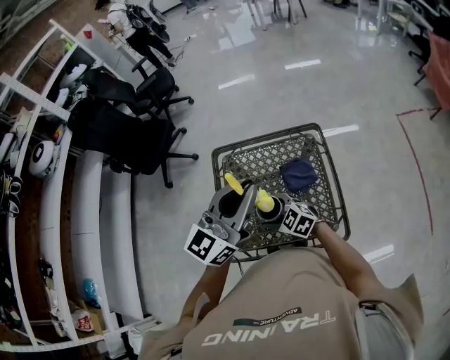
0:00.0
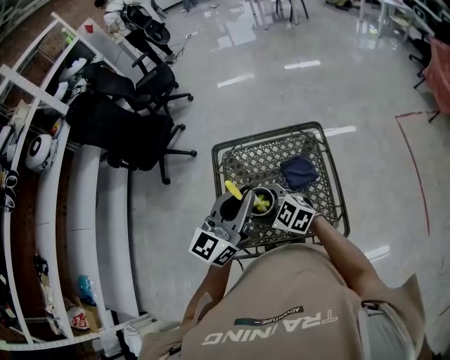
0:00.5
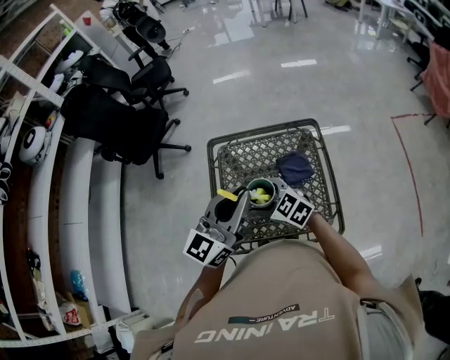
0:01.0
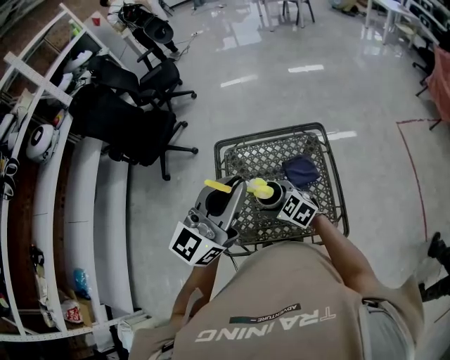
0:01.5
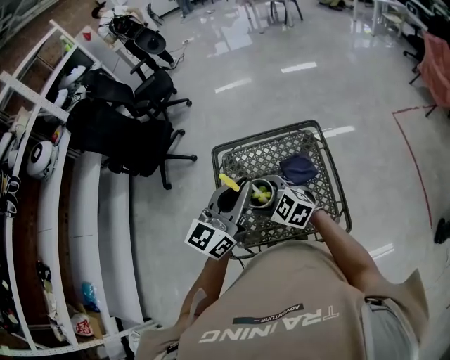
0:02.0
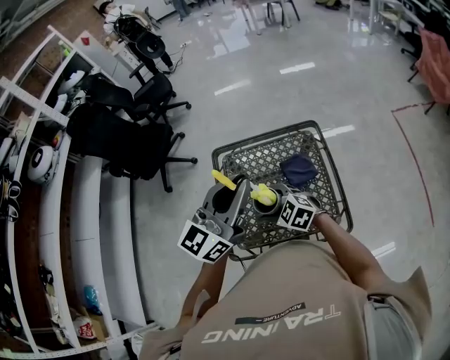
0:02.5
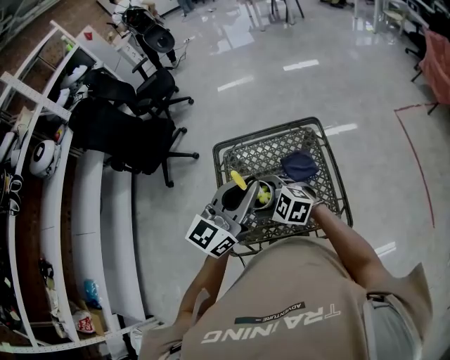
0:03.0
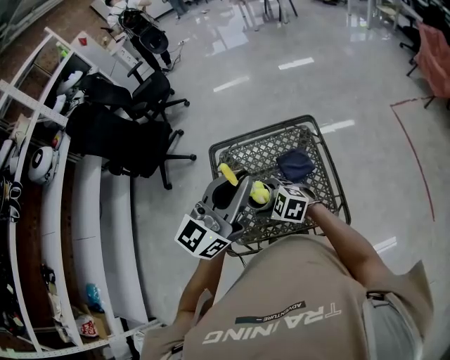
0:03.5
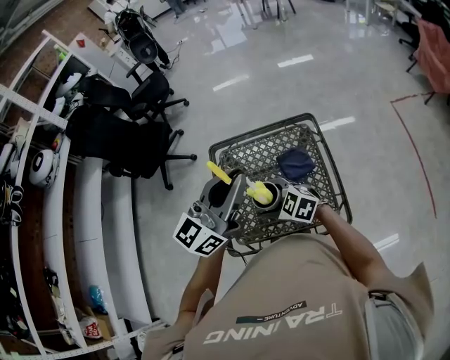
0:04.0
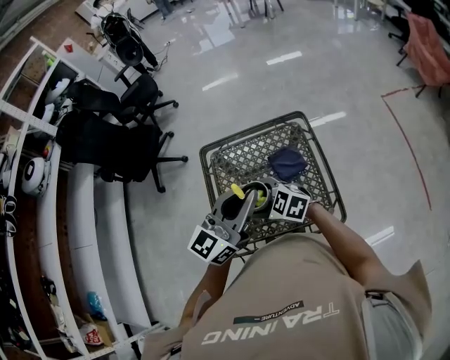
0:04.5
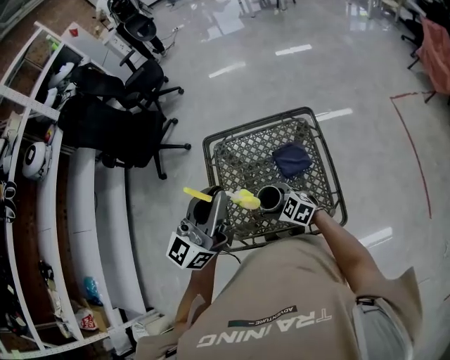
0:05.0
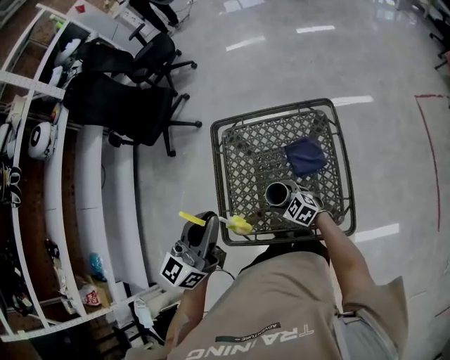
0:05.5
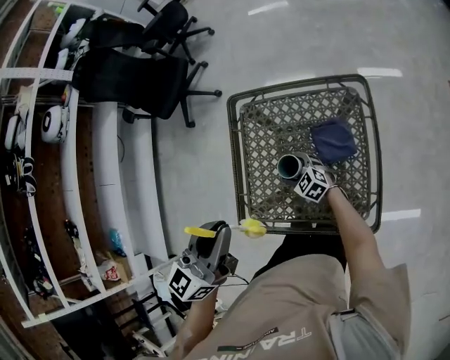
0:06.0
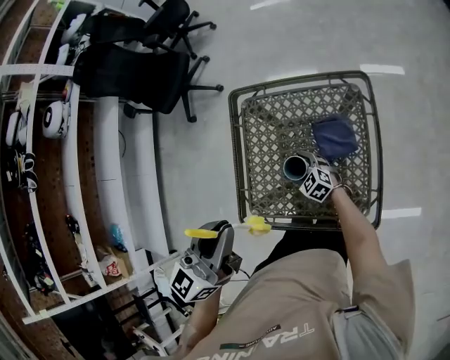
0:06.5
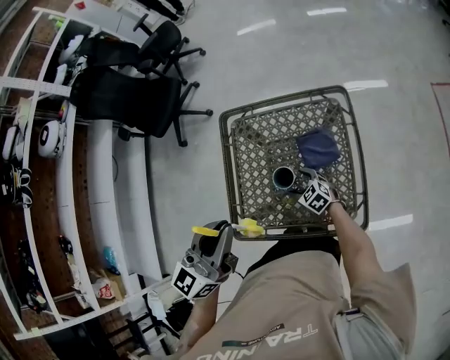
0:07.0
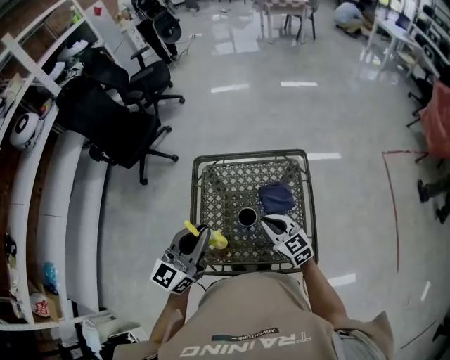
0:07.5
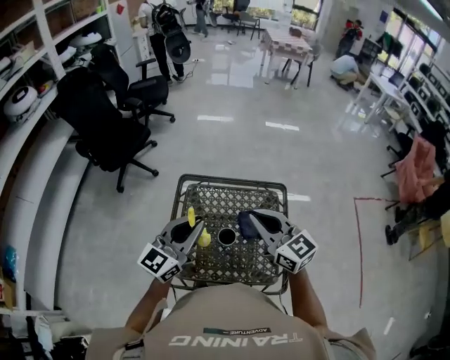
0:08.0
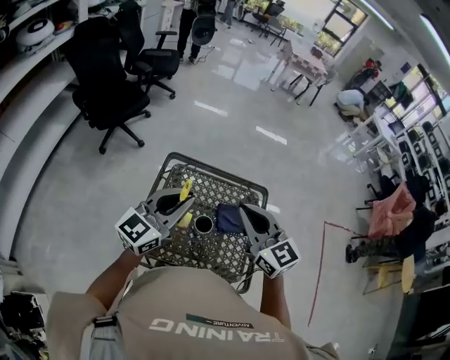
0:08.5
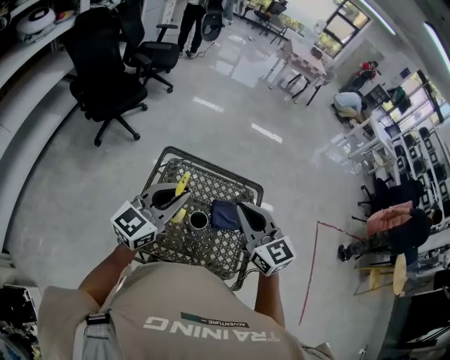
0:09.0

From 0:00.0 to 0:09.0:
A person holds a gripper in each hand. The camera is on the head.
From 0:00.0 to 0:02.0: The left gripper moves up and down over some 10 cm, changing direction 2 times. The right gripper moves up and down over approximately 10 cm, changing direction 2 times.
From 0:02.0 to 0:04.5: The left gripper moves up and down over about 5 cm, changing direction 3 times.
From 0:04.5 to 0:07.0: The left gripper goes roughly 10 cm to the left, and changes its angle by approximately 20 degrees. The right gripper moves downward, approximately 25 cm.
From 0:07.0 to 0:09.0: The right gripper travels upward by some 40 cm, points its fingers roughly 40 degrees further upward, and closes up. Meanwhile the left gripper shifts approximately 5 cm forward.

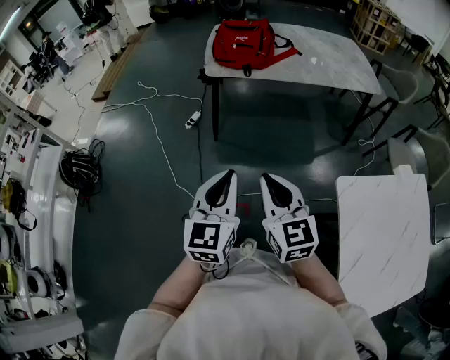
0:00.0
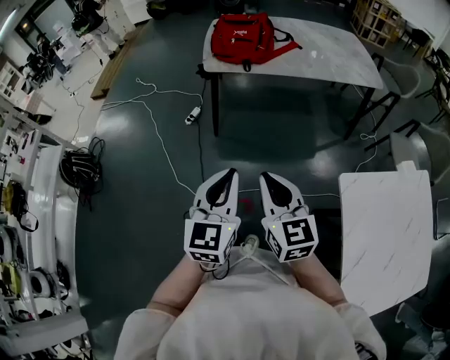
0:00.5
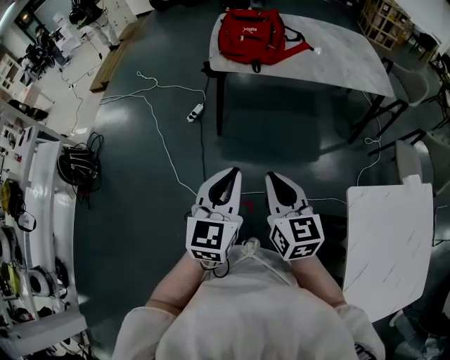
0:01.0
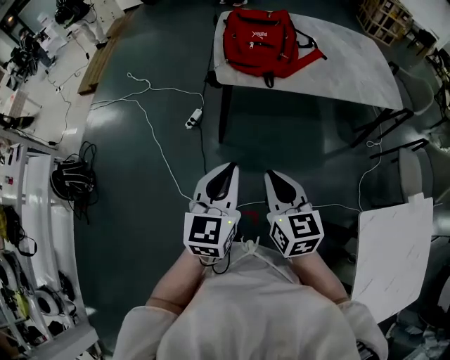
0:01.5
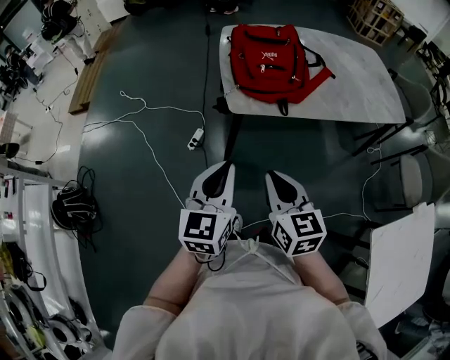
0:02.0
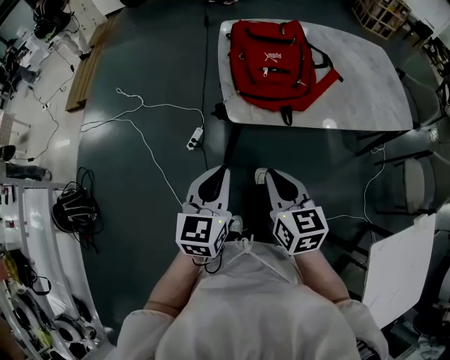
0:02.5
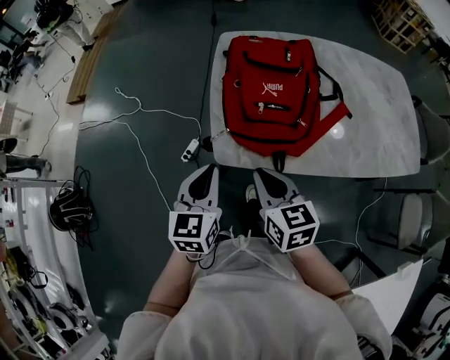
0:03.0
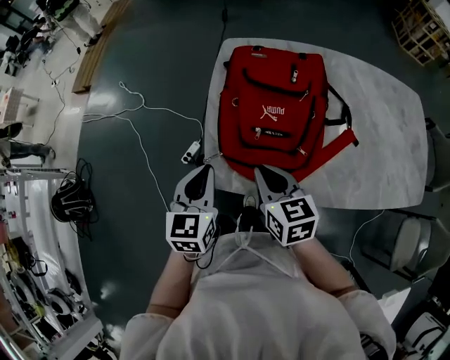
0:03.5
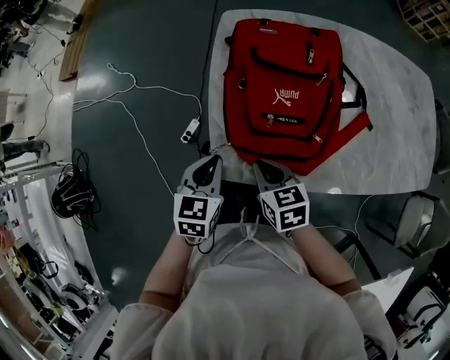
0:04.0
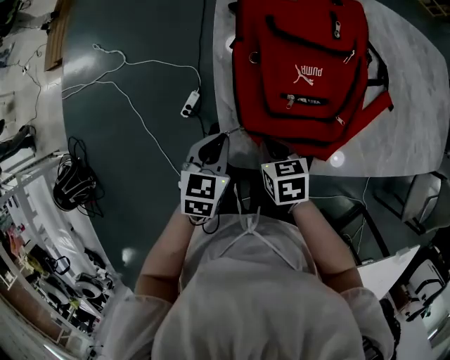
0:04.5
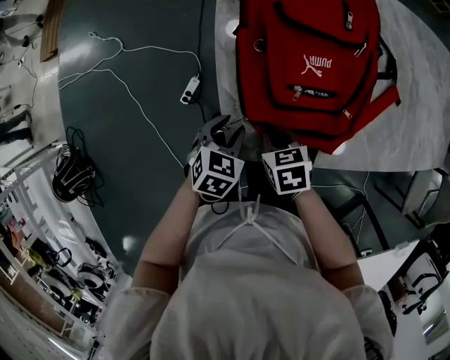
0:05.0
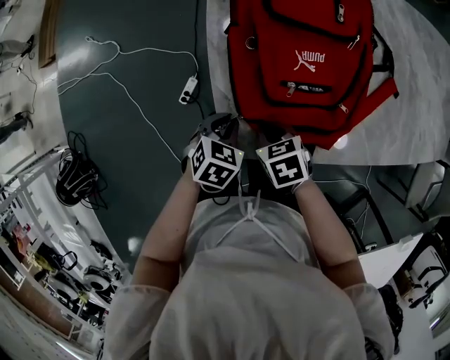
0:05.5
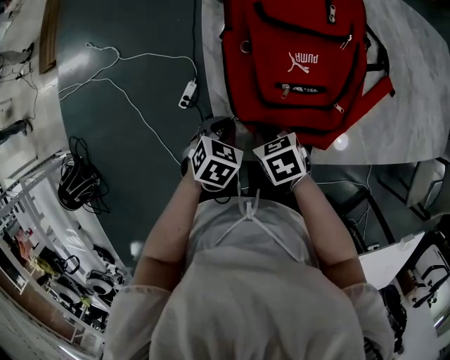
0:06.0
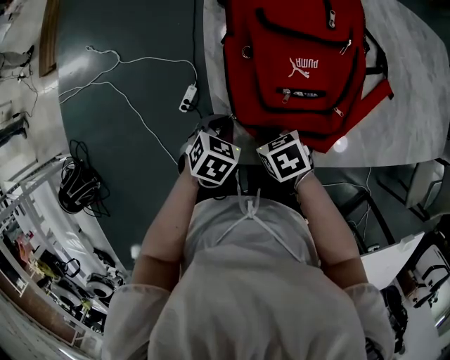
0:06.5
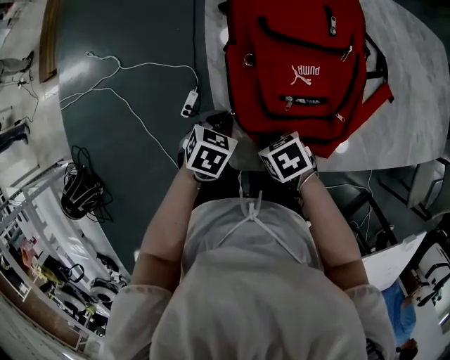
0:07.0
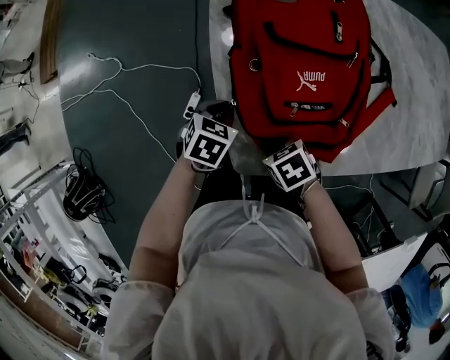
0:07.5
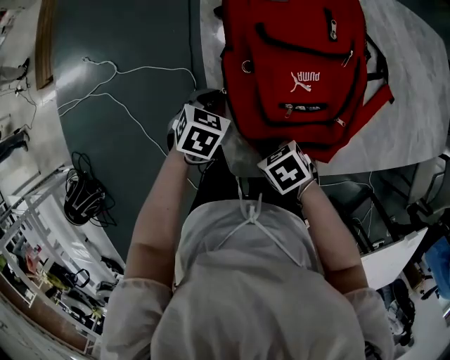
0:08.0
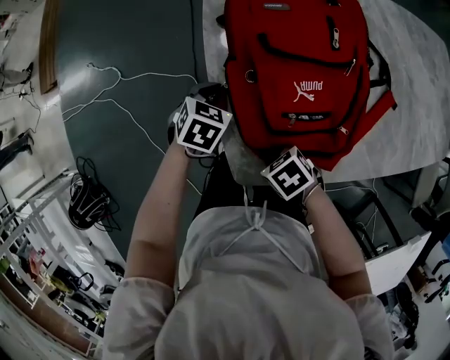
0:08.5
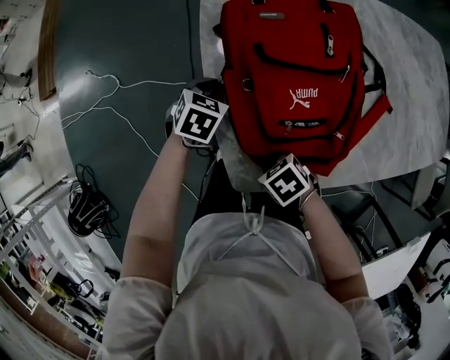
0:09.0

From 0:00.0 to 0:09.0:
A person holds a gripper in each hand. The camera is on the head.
From 0:00.0 to 0:02.0: Both grippers move forward and to the left, roughly 40 cm.
From 0:02.0 to 0:04.5: The grippers both shift forward and downward by about 40 cm. The right gripper angles its fingers downward, by about 40 degrees; the left gripper angles its fingers downward, by about 30 degrees.
From 0:04.5 to 0:07.0: The right gripper swivels roughly 20 degrees, while the left gripper shifts about 5 cm downward, changes its angle by about 20 degrees, and opens, then closes again.
From 0:07.0 to 0:09.0: The left gripper moves approximately 15 cm.

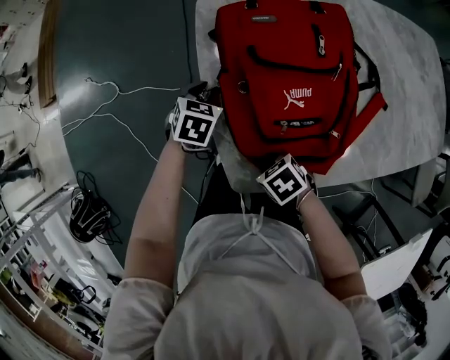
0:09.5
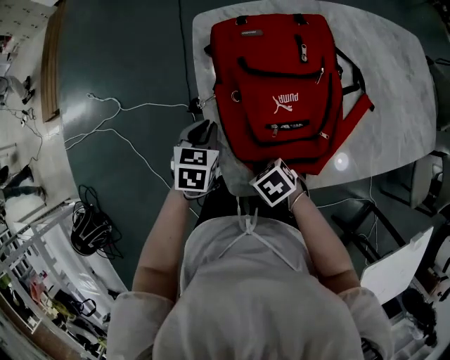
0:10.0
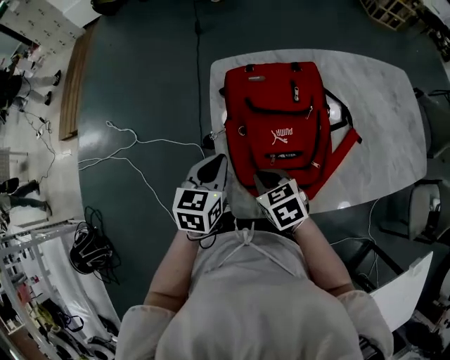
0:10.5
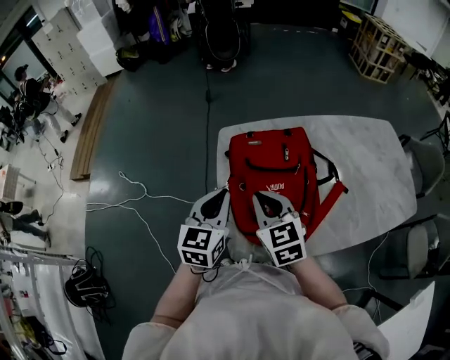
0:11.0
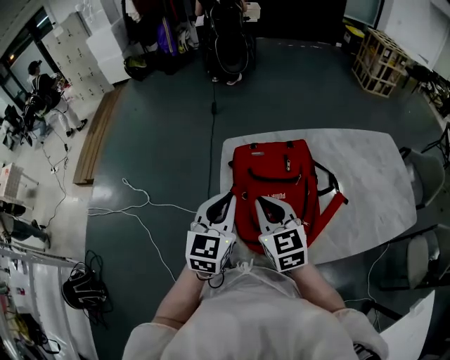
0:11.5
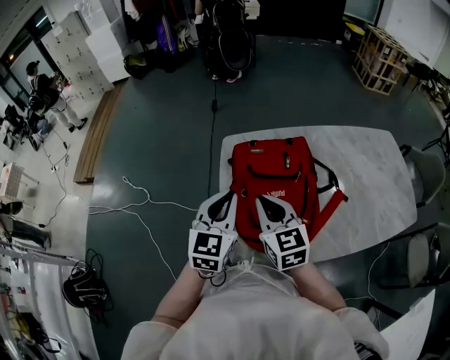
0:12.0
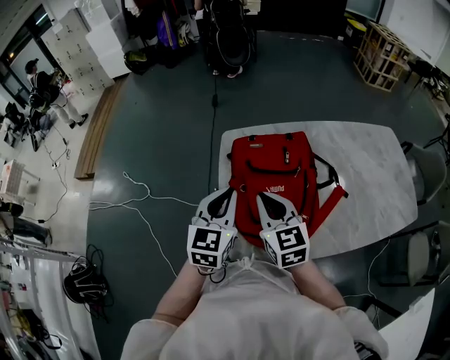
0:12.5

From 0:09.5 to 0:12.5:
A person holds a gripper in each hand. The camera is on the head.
From 0:09.5 to 0:11.0: The grippers both shift upward by about 30 cm. The left gripper points its fingers about 40 degrees further upward. Meanwhile the right gripper tips its fingers upward by roughly 40 degrees.
From 0:11.0 to 0:12.5: The grippers stay close to where they were, moving slightly.

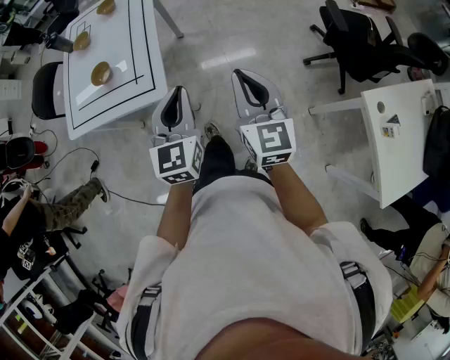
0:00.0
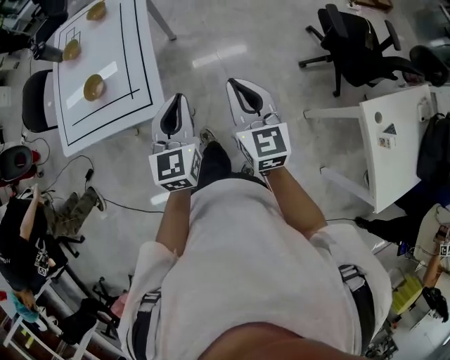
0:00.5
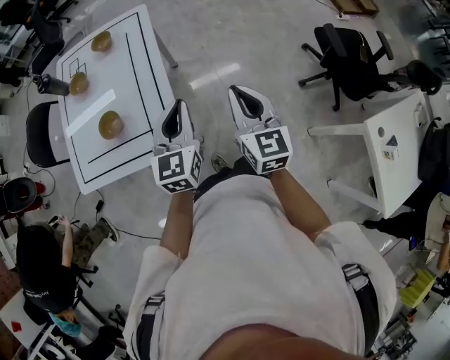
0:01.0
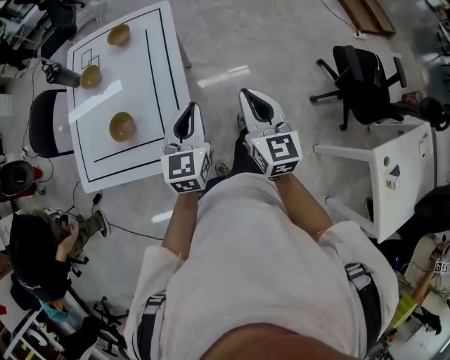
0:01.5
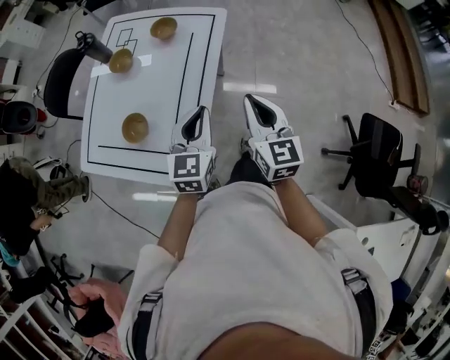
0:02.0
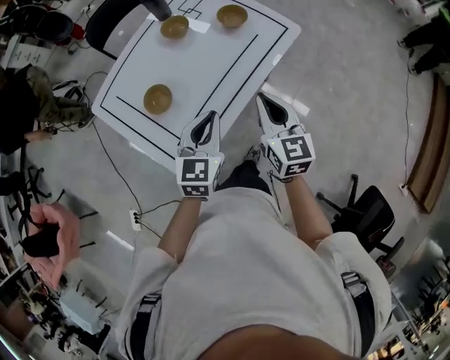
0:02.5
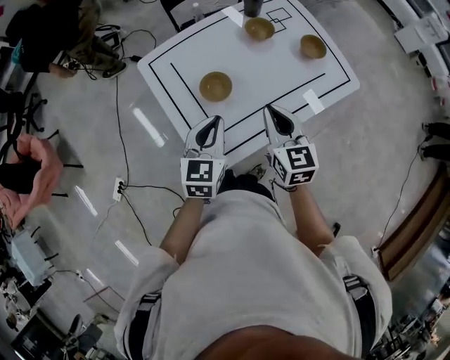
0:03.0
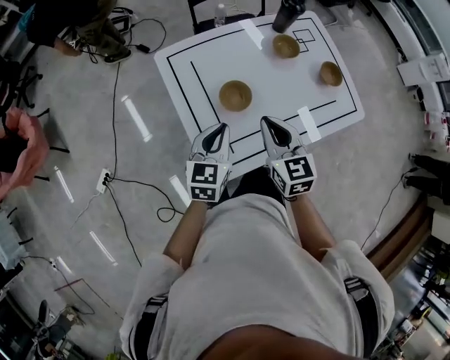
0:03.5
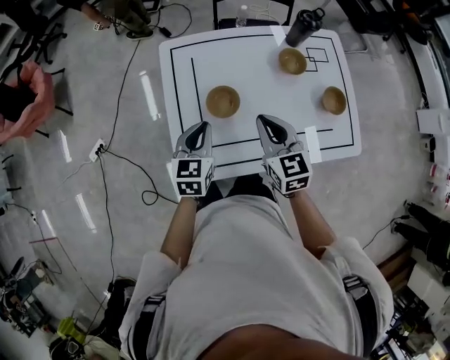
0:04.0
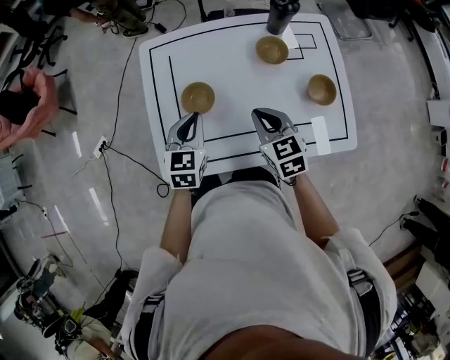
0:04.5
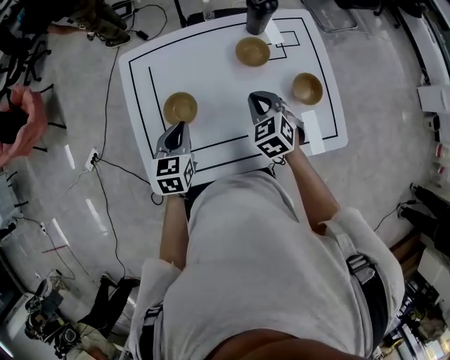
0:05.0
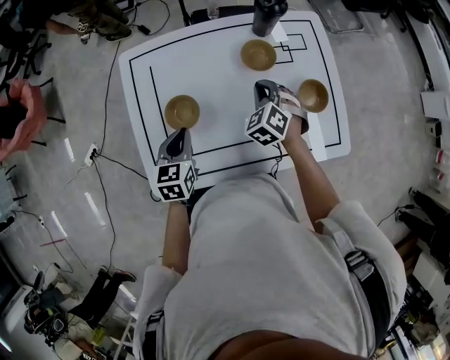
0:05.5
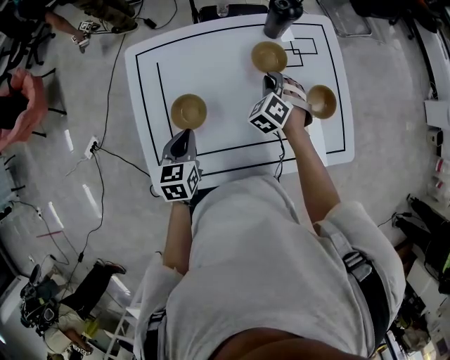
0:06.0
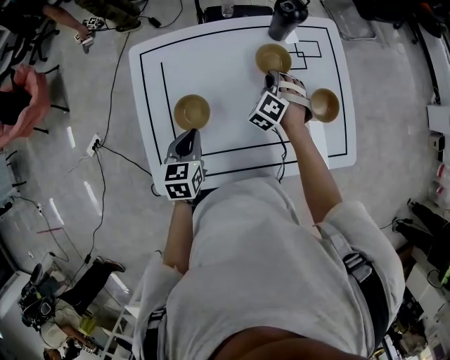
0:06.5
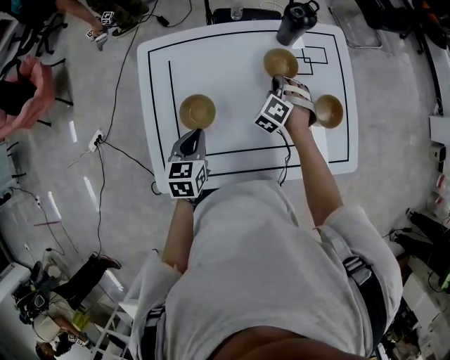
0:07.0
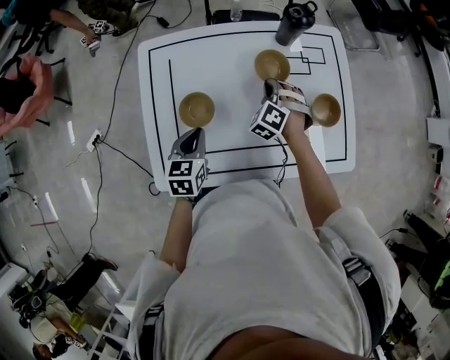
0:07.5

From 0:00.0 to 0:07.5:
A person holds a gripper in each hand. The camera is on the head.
From 0:00.0 to 0:02.0: The pair of grippers is taken forward, roughly 50 cm. The right gripper turns by approximately 20 degrees.
From 0:02.0 to 0:04.0: The right gripper moves about 35 cm, and rotates about 80 degrees. Meanwhile the left gripper shifts by approximately 30 cm, and swivels approximately 70 degrees.
From 0:04.0 to 0:05.5: The left gripper travels to the right and downward by some 10 cm. Meanwhile the right gripper shifts roughly 25 cm to the right, downward and forward, and rotates about 50 degrees.
From 0:05.5 to 0:07.5: The right gripper changes place by about 5 cm.
